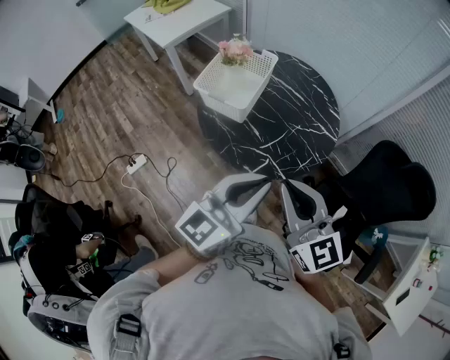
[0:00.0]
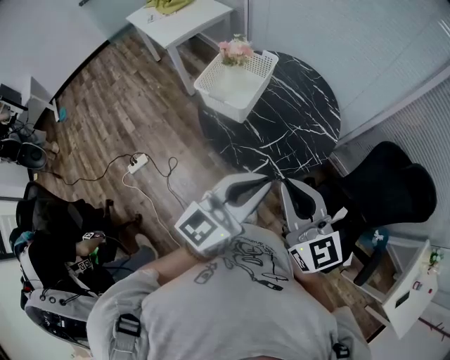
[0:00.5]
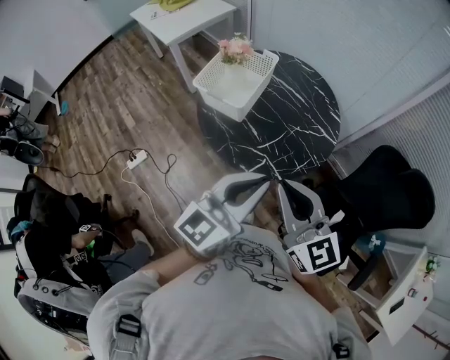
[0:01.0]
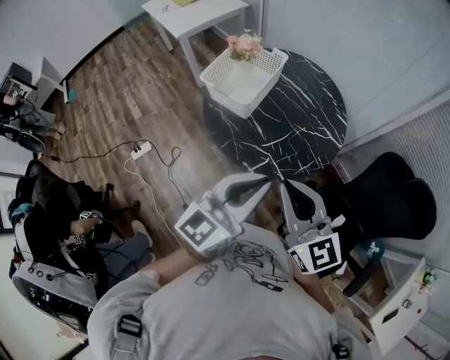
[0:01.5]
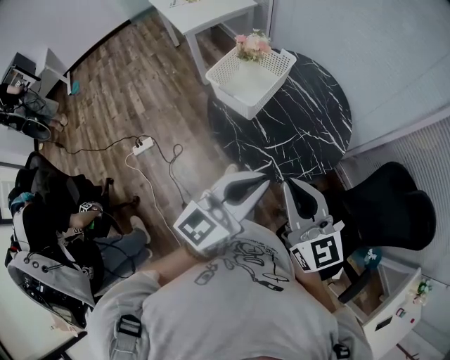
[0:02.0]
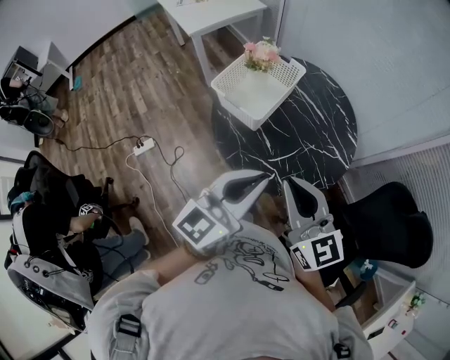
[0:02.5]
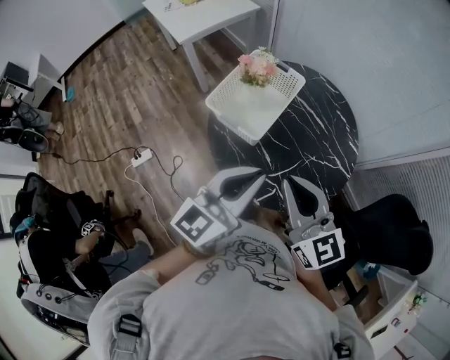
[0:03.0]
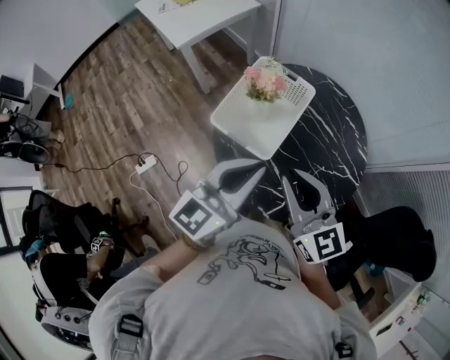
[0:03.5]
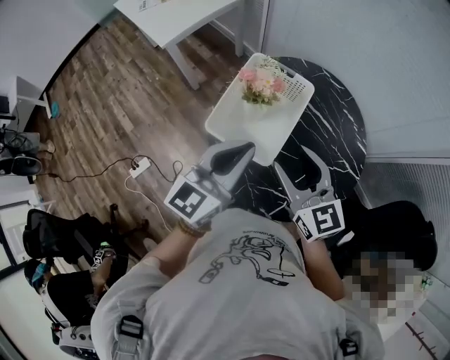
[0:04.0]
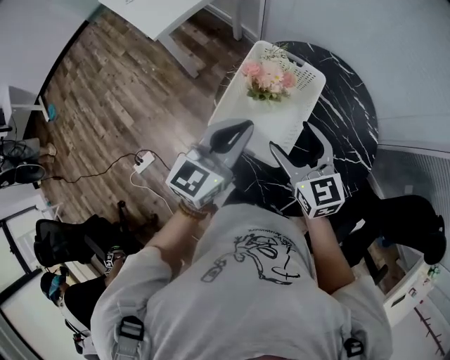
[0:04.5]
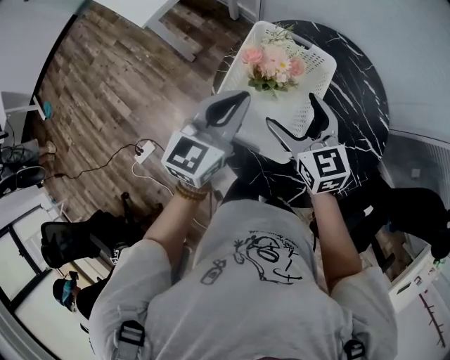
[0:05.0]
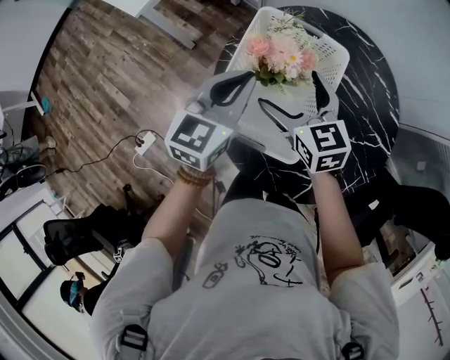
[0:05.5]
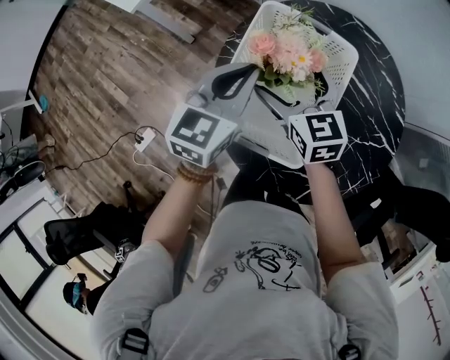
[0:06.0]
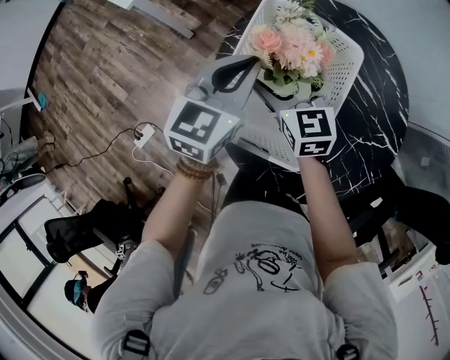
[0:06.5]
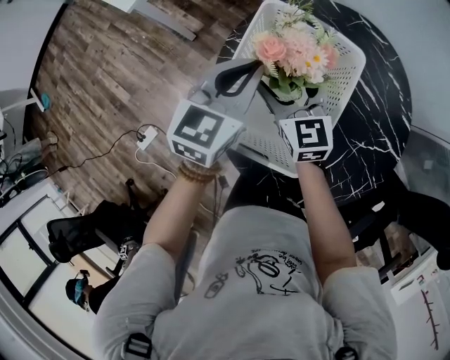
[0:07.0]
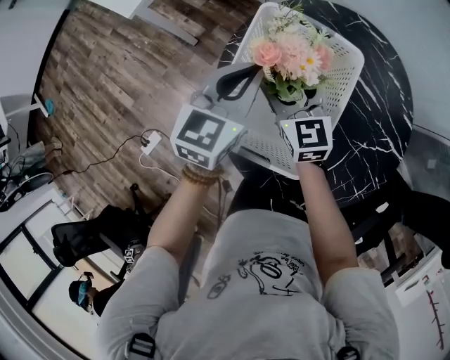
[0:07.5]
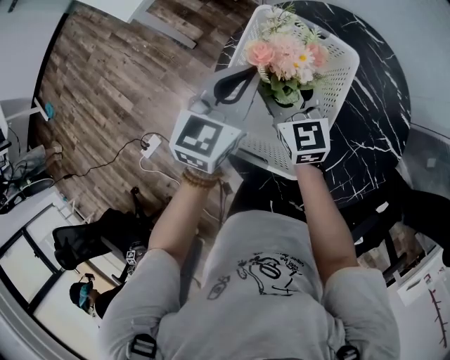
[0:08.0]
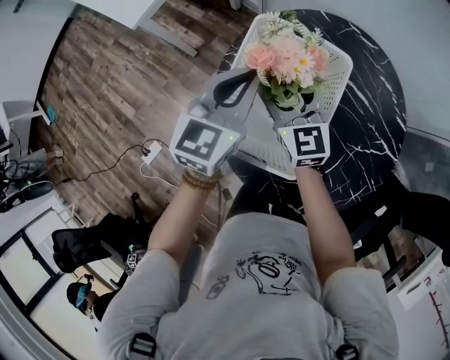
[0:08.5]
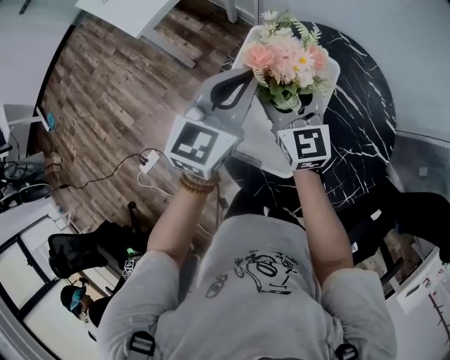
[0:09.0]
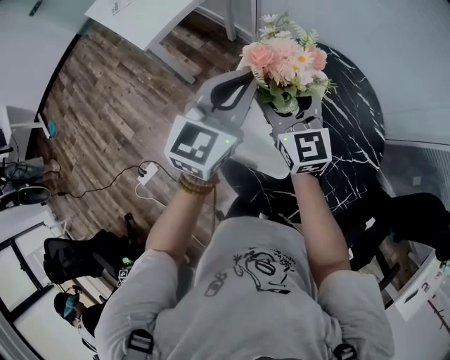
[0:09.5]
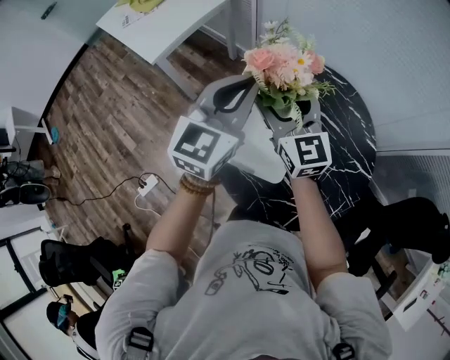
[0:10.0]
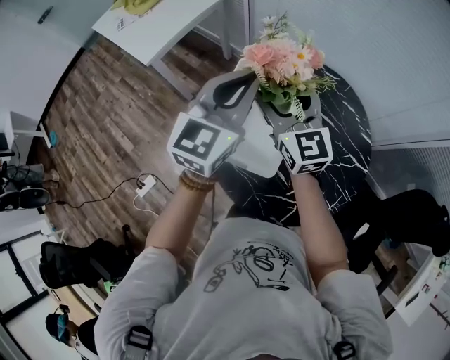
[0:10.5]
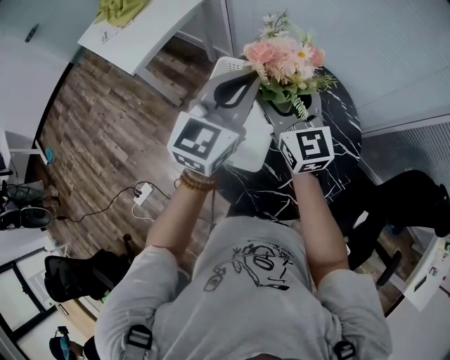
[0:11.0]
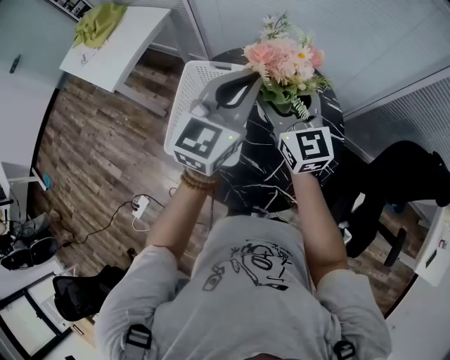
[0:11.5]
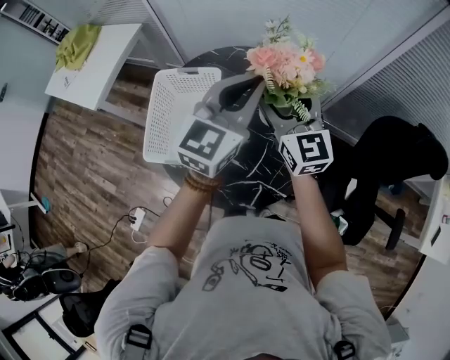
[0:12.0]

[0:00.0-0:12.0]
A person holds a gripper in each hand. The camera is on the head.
0:00.0 to 0:02.0: There are only small adjustments of the grippers.
0:02.0 to 0:04.0: The left gripper shifts some 40 cm forward and to the left. Meanwhile the right gripper is displaced forward by roughly 35 cm, and opens its fingers.
0:04.0 to 0:06.0: Both grippers move forward and downward, about 30 cm. The right gripper opens.
0:06.0 to 0:08.0: The right gripper closes.
0:08.0 to 0:10.0: Both grippers travel together upward, roughly 20 cm.
0:10.0 to 0:12.0: Both grippers travel together to the right, roughly 30 cm. The right gripper rotates approximately 20 degrees, while the left gripper rotates approximately 20 degrees.

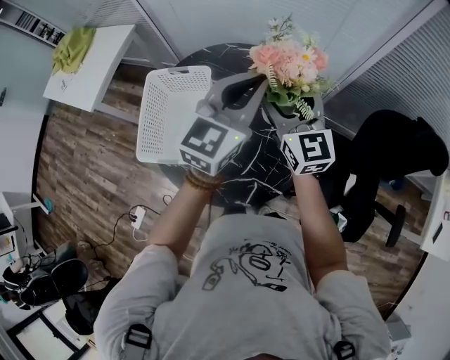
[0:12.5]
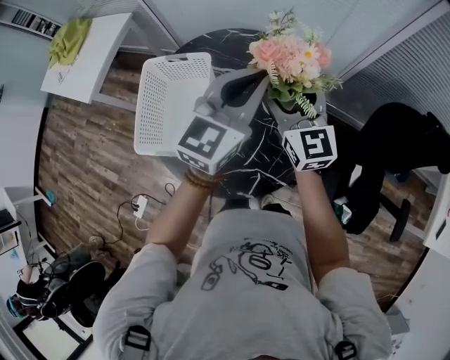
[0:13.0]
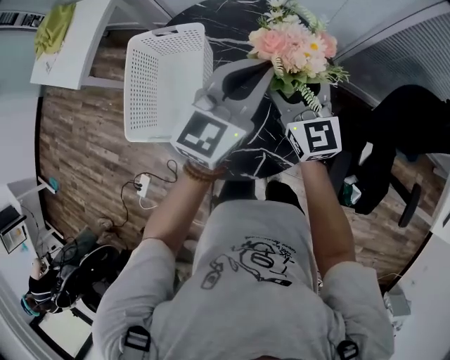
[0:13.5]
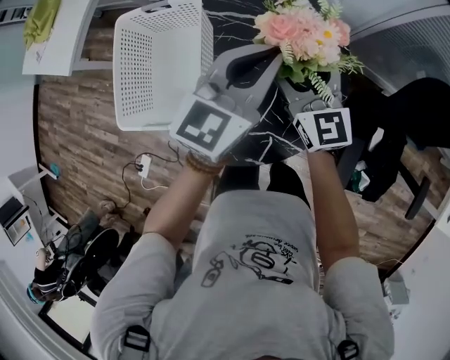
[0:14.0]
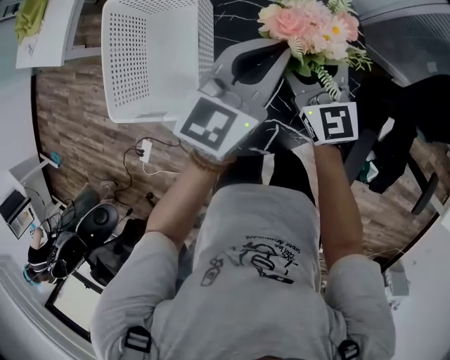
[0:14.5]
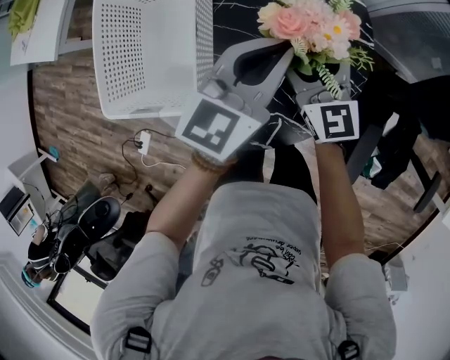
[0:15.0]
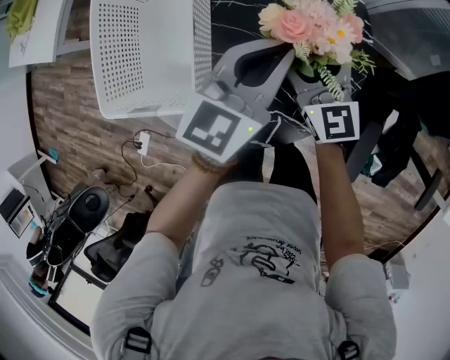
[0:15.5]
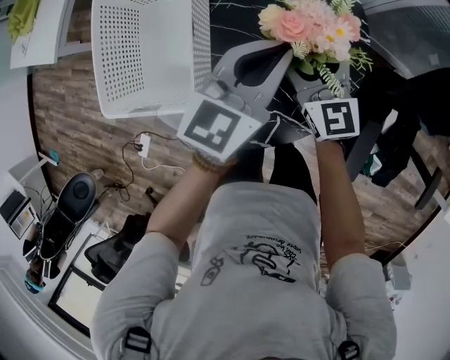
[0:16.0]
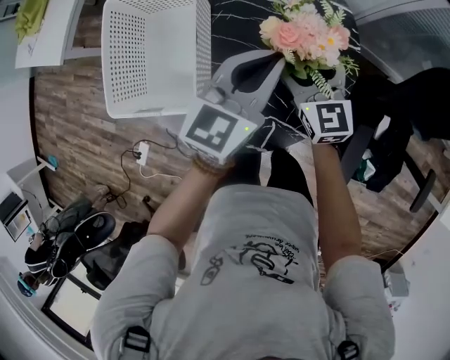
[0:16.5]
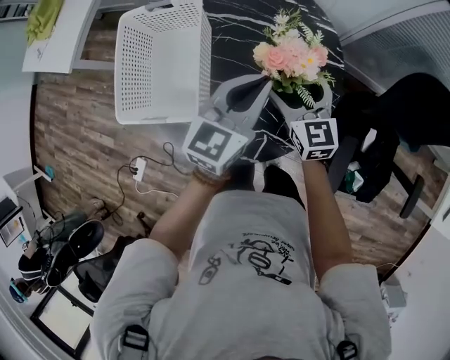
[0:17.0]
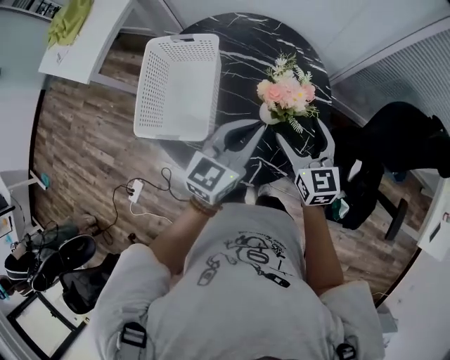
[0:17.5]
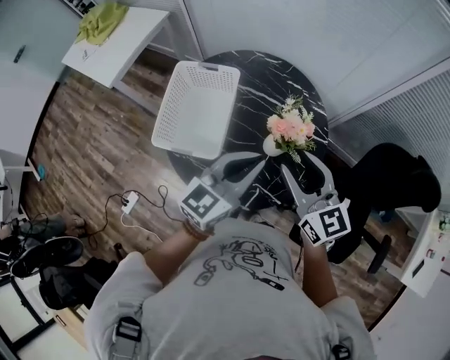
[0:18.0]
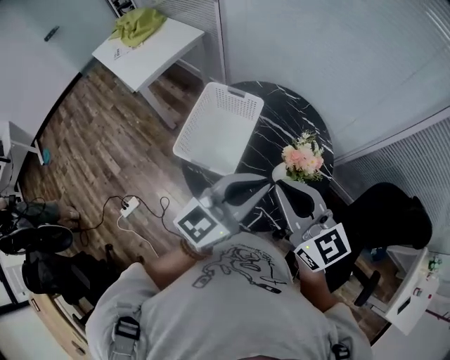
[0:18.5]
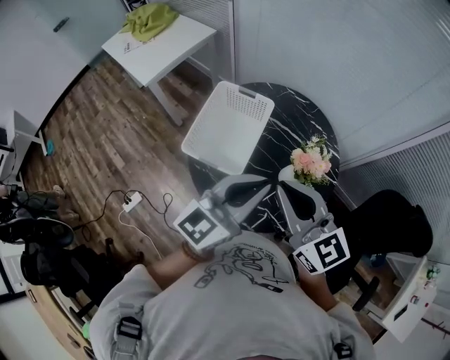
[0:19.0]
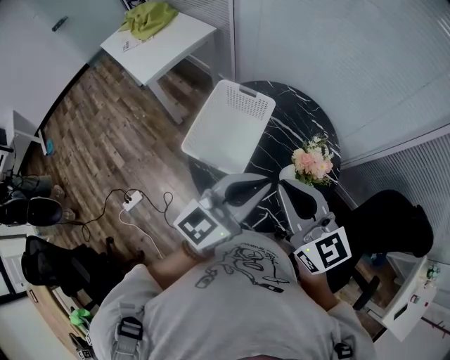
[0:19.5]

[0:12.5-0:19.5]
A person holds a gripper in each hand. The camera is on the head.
0:12.5 to 0:14.5: The grippers both shift downward by approximately 20 cm.
0:14.5 to 0:16.0: There are only small adjustments of the grippers.
0:16.0 to 0:17.5: The right gripper moves upward, backward and to the right, roughly 15 cm. The left gripper travels upward and backward by about 10 cm.
0:17.5 to 0:19.5: Both grippers travel together upward and to the left, approximately 25 cm. The right gripper turns by roughly 40 degrees, and closes up.

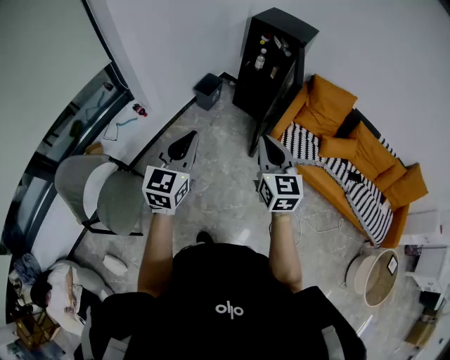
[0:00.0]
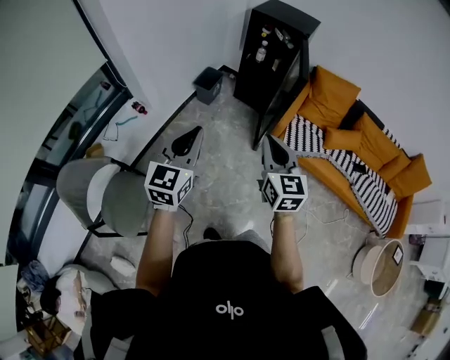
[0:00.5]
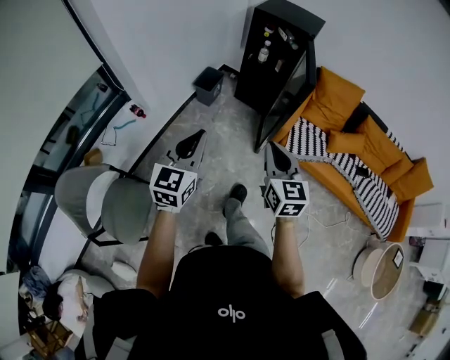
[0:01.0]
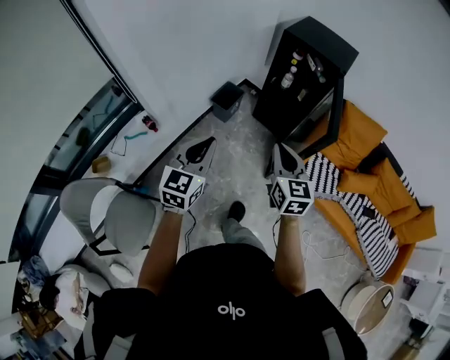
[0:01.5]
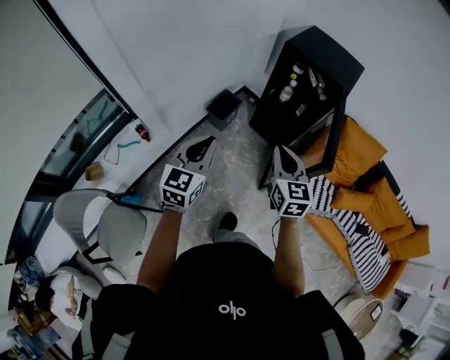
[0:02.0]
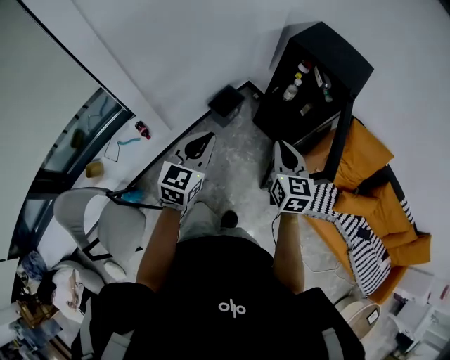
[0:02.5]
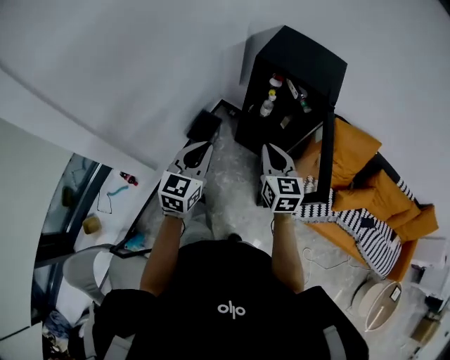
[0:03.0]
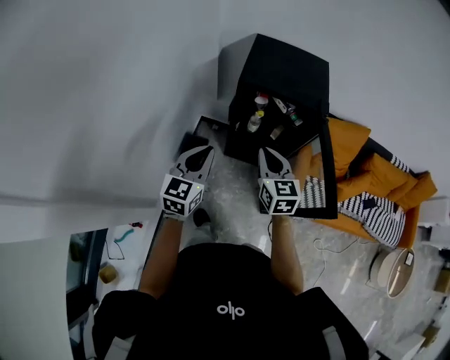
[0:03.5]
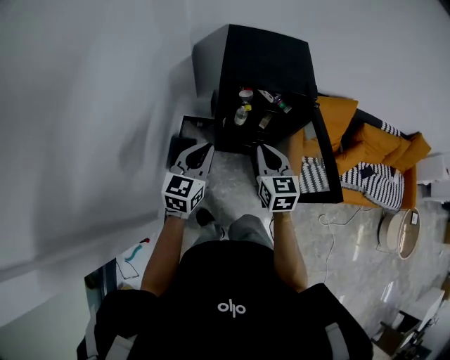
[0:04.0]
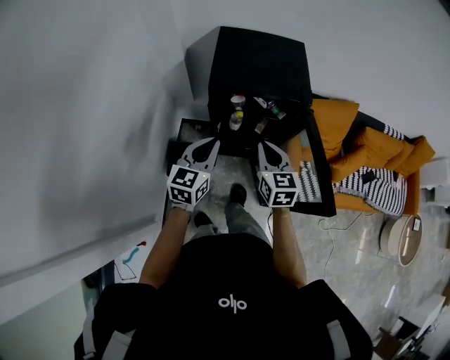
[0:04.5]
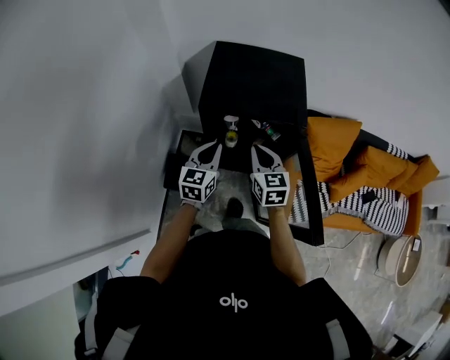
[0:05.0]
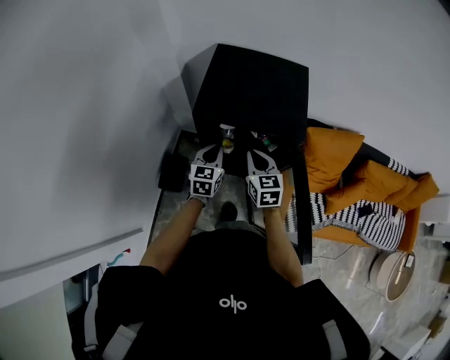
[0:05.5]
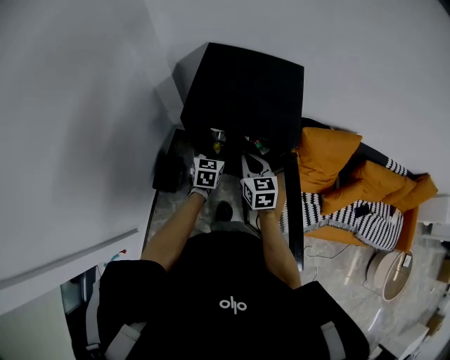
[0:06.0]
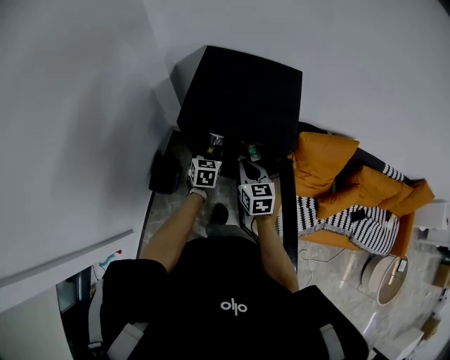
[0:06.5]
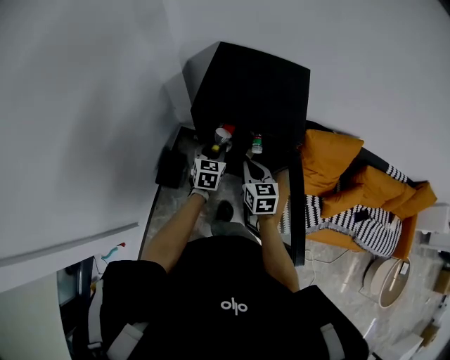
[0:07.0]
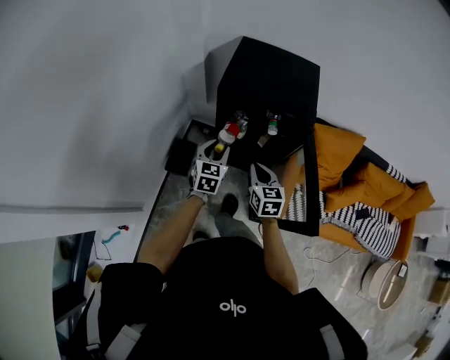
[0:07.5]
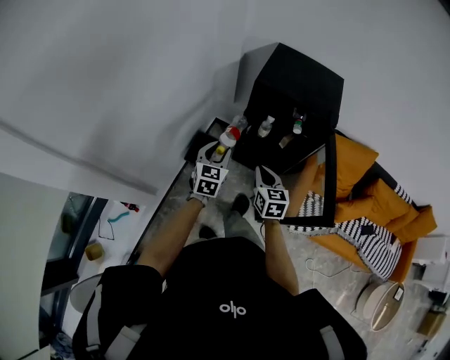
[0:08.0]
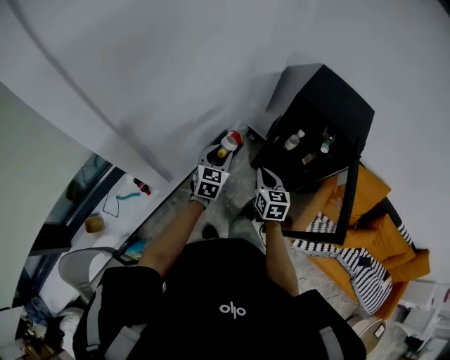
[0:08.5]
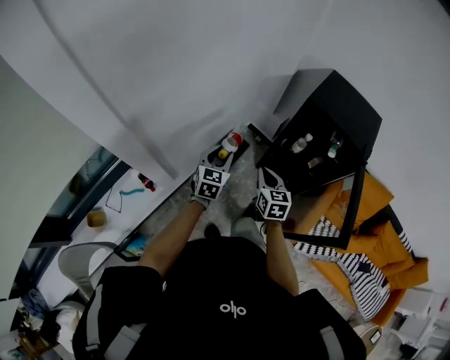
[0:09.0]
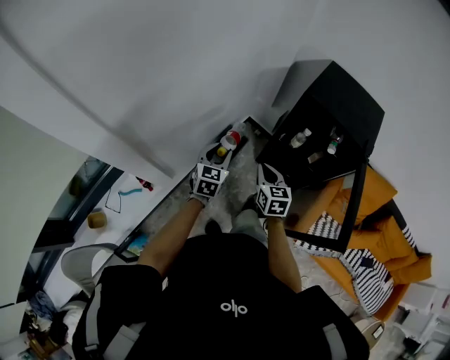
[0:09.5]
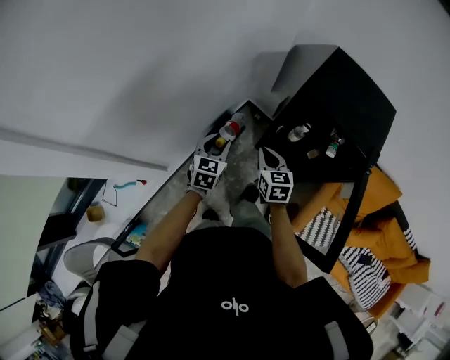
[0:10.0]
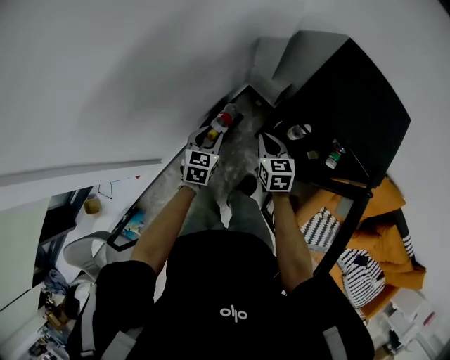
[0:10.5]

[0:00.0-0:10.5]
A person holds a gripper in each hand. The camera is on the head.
0:00.0 to 0:02.0: Both grippers move forward, approximately 40 cm.
0:02.0 to 0:04.0: The left gripper shifts by some 40 cm, and swivels roughly 30 degrees. The right gripper ends up about 30 cm from where it was, and swivels some 30 degrees.
0:04.0 to 0:06.5: Both grippers travel together forward, downward and to the right, approximately 30 cm. The left gripper swivels roughly 30 degrees, and opens its fingers.
0:06.5 to 0:08.5: The right gripper goes approximately 35 cm to the left and backward; the left gripper heads backward and to the left, covering approximately 40 cm, and swivels approximately 20 degrees.
0:08.5 to 0:10.5: The right gripper moves forward, approximately 25 cm. The left gripper is displaced forward and downward by approximately 20 cm.
